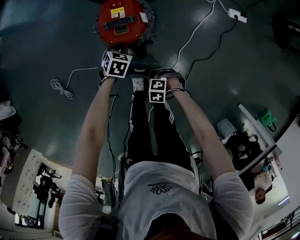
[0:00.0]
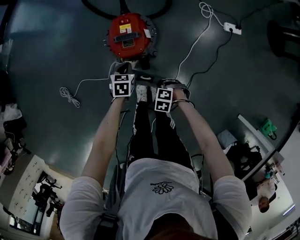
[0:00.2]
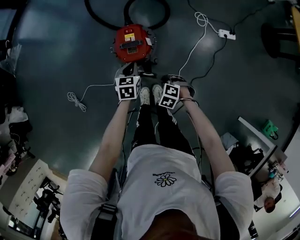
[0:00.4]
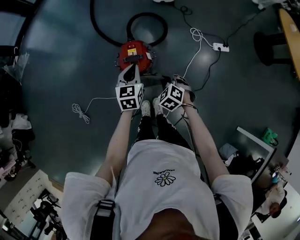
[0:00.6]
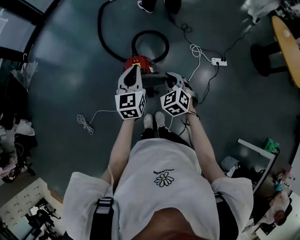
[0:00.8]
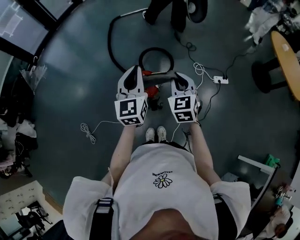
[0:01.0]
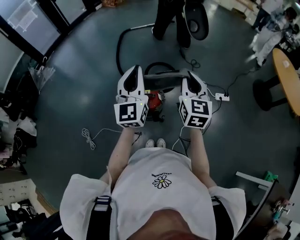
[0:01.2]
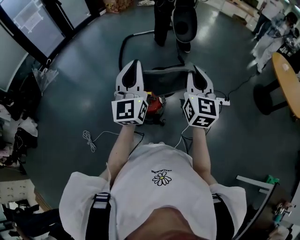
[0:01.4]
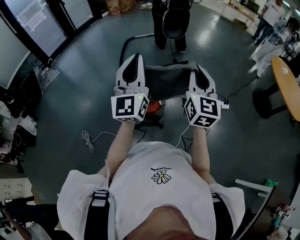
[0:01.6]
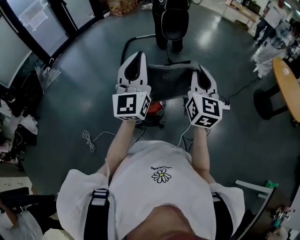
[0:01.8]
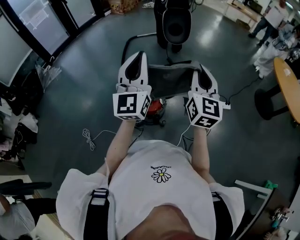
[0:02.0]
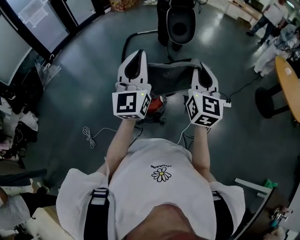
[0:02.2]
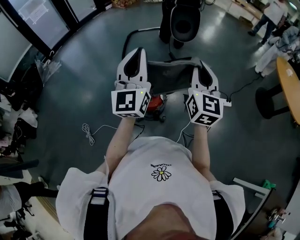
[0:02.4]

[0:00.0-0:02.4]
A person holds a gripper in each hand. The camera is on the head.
0:00.0 to 0:01.2: Both grippers travel together upward, about 70 cm. The right gripper angles its fingers upward, by some 70 degrees; the left gripper tips its fingers upward by some 80 degrees.
0:01.2 to 0:02.4: The two grippers go roughly 10 cm upward.

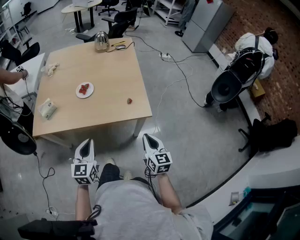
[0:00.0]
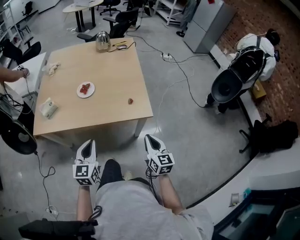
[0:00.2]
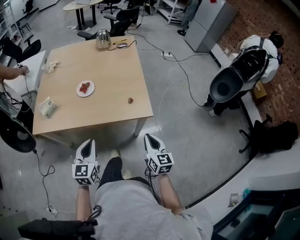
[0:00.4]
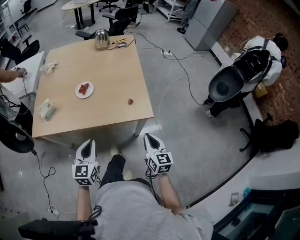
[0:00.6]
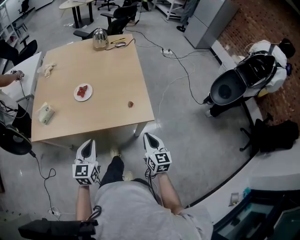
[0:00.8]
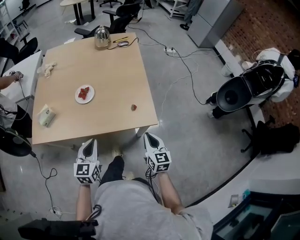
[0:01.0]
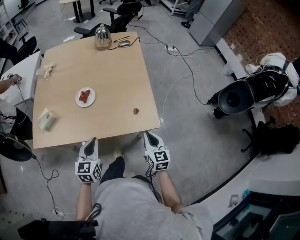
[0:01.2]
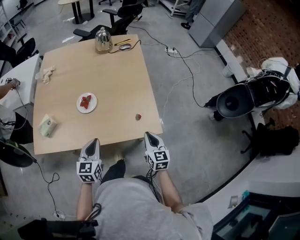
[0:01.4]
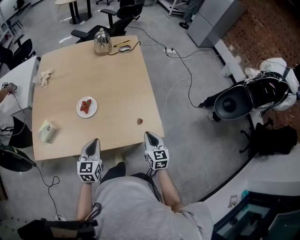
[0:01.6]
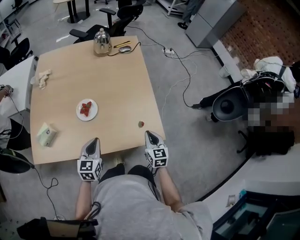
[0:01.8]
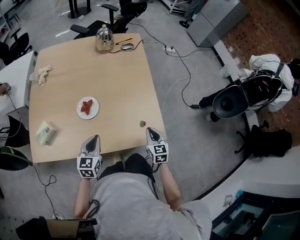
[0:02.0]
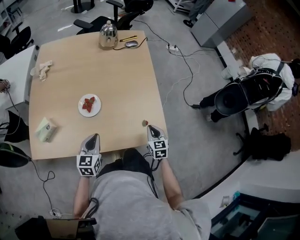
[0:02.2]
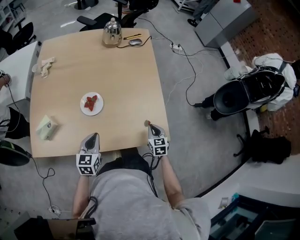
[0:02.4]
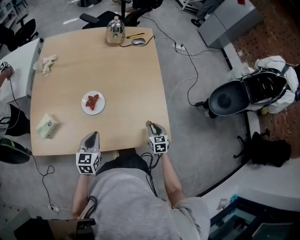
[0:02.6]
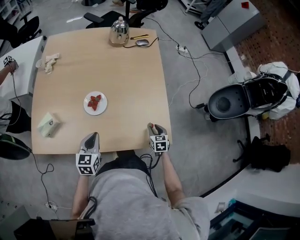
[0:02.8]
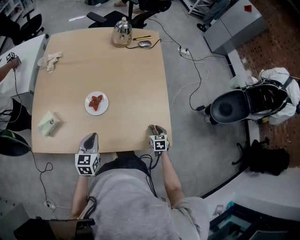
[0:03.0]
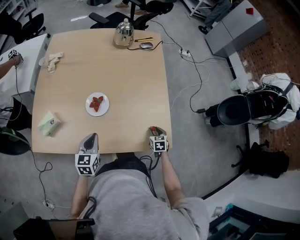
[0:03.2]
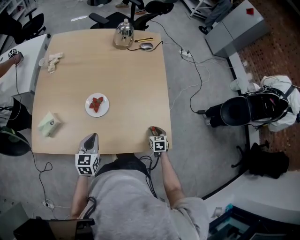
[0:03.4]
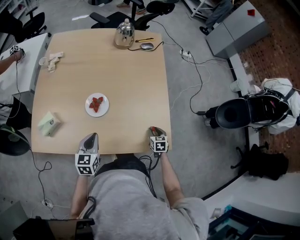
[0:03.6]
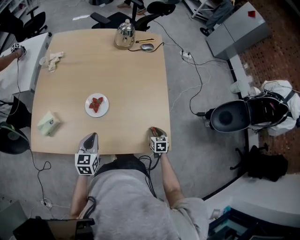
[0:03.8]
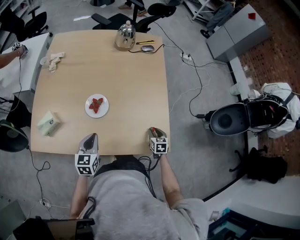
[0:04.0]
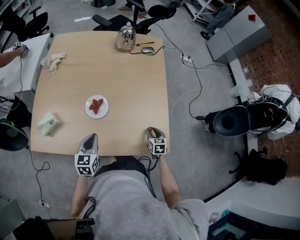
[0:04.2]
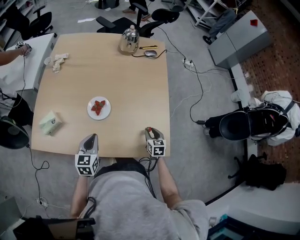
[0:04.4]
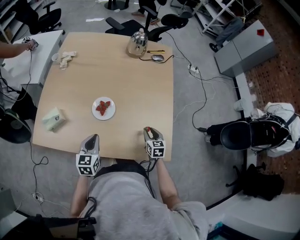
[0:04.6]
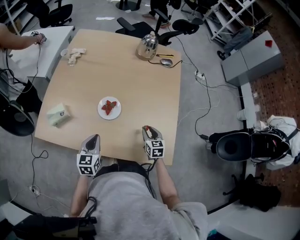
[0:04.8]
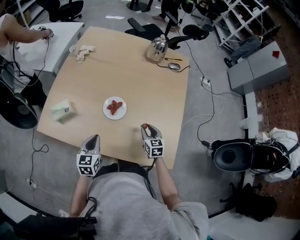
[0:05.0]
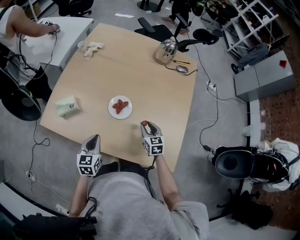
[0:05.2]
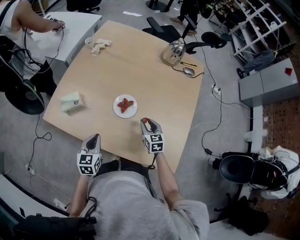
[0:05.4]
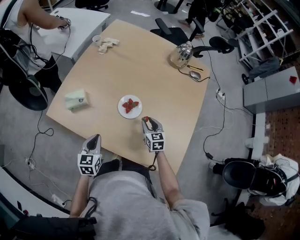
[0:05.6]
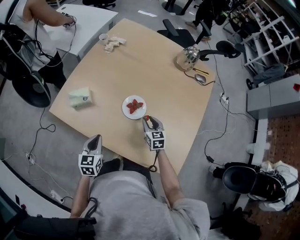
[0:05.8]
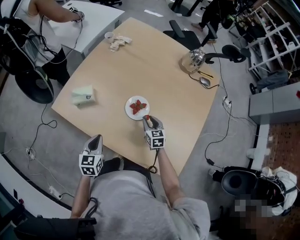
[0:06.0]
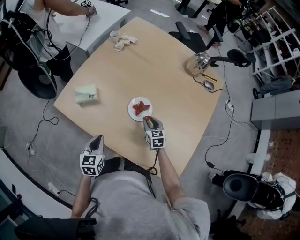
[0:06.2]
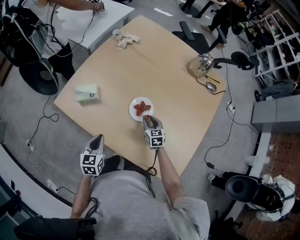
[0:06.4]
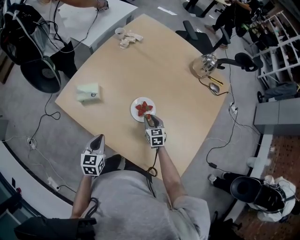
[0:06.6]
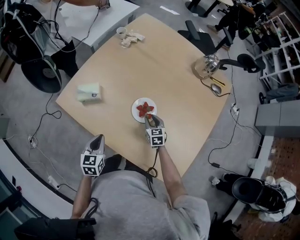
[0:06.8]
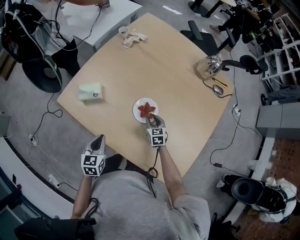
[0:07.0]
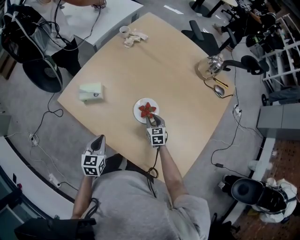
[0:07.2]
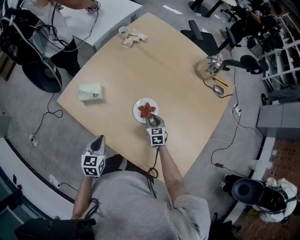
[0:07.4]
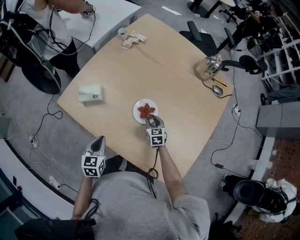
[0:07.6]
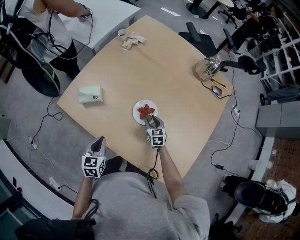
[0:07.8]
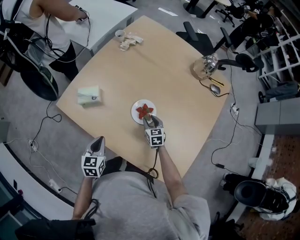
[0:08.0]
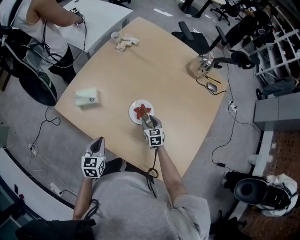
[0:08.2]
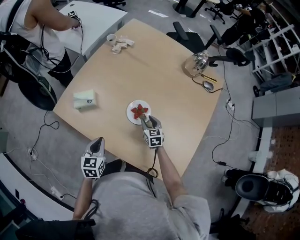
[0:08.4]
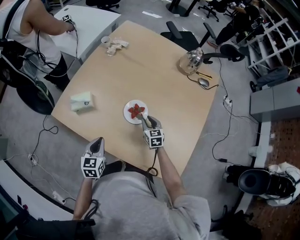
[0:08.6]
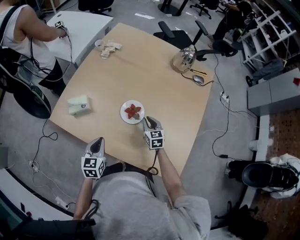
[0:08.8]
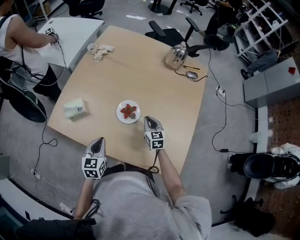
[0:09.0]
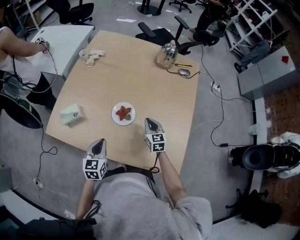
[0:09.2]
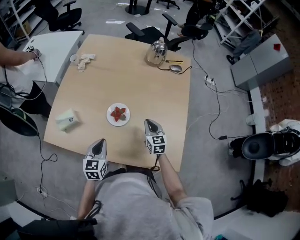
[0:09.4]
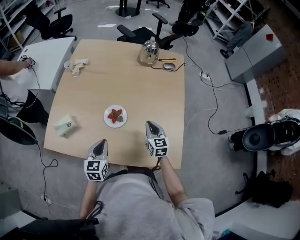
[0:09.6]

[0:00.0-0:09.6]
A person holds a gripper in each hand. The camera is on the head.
0:00.0 to 0:01.6: The two grippers go roughly 20 cm forward.
0:01.6 to 0:03.2: The right gripper shifts approximately 20 cm downward and forward, turns by some 30 degrees, and opens; the left gripper travels to the left and forward by approximately 10 cm.
0:03.2 to 0:04.8: The right gripper travels to the left, upward and forward by approximately 15 cm, and changes its angle by roughly 20 degrees.
0:04.8 to 0:06.4: The right gripper heads to the left and forward, covering roughly 20 cm, and rotates approximately 30 degrees. The left gripper goes about 10 cm to the left, and swivels roughly 20 degrees.
0:06.4 to 0:08.0: The grippers make only small movements.
0:08.0 to 0:09.6: The right gripper moves roughly 20 cm, changes its angle by approximately 30 degrees, and closes, while the left gripper moves roughly 15 cm, and swivels approximately 30 degrees.

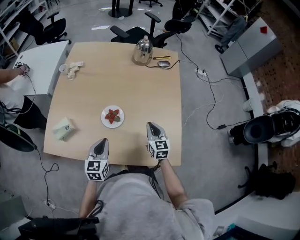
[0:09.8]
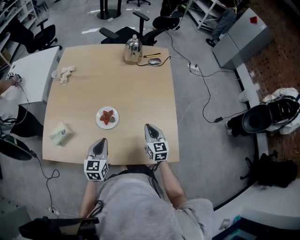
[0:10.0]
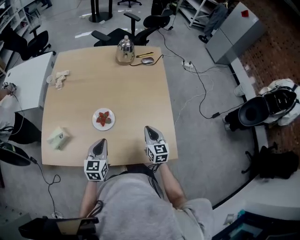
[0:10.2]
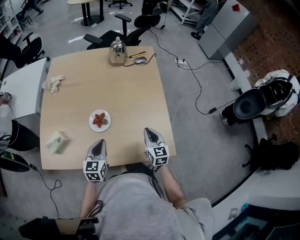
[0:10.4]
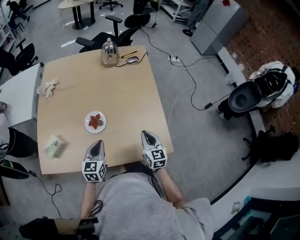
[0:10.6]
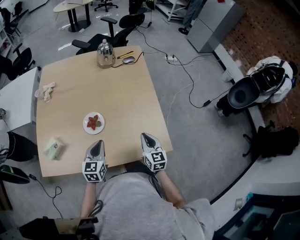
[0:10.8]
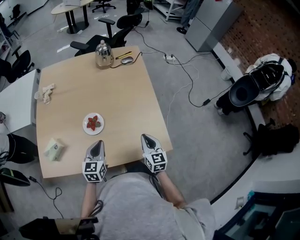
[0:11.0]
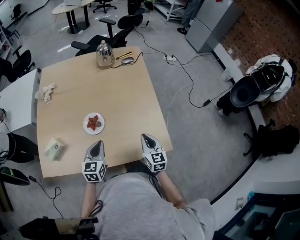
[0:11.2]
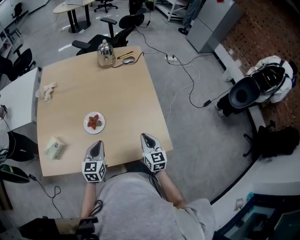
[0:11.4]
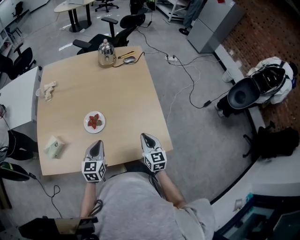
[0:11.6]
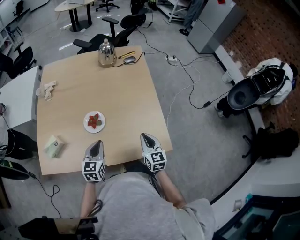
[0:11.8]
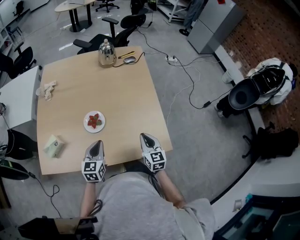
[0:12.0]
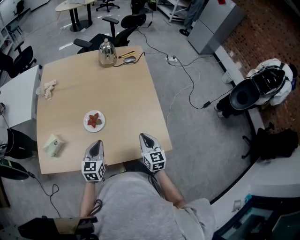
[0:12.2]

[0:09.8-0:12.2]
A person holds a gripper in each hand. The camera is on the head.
0:09.8 to 0:11.0: The left gripper travels to the right by approximately 5 cm. The right gripper moves backward and to the right, approximately 15 cm.
0:11.0 to 0:12.2: The grippers stay close to where they were, moving slightly.

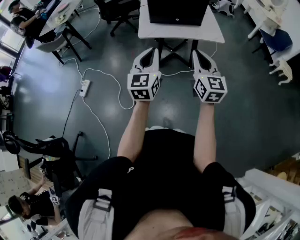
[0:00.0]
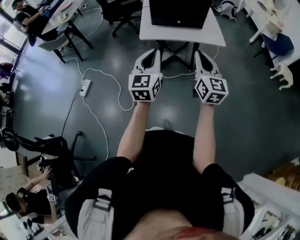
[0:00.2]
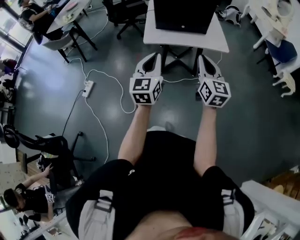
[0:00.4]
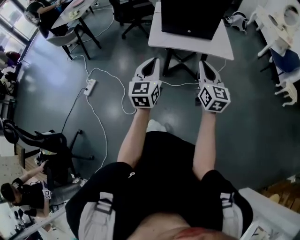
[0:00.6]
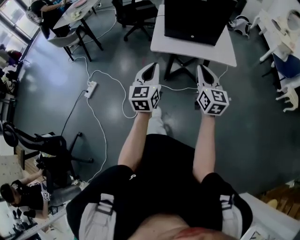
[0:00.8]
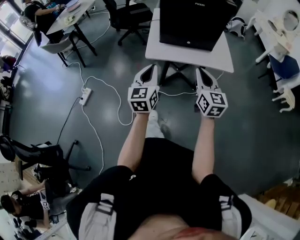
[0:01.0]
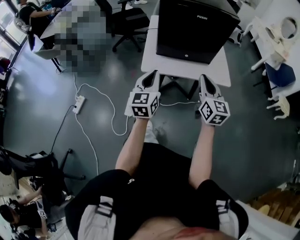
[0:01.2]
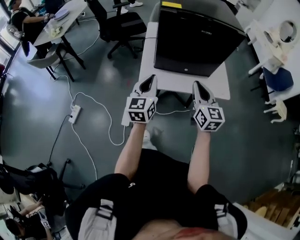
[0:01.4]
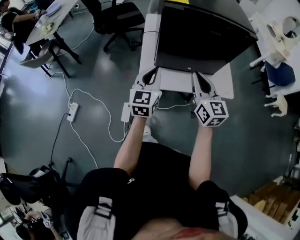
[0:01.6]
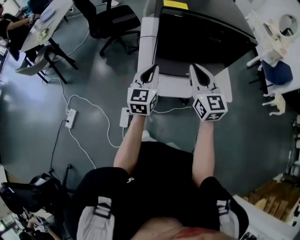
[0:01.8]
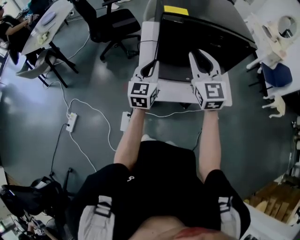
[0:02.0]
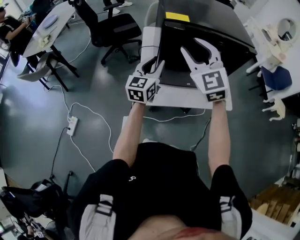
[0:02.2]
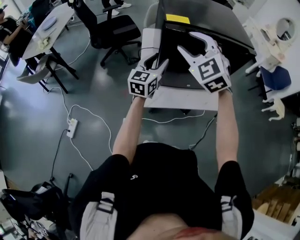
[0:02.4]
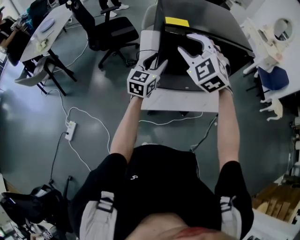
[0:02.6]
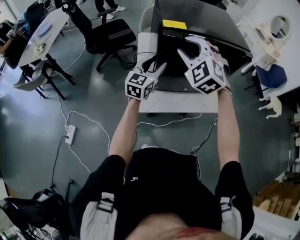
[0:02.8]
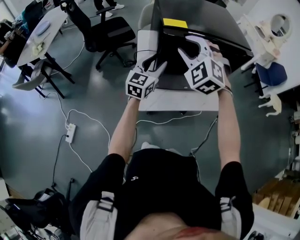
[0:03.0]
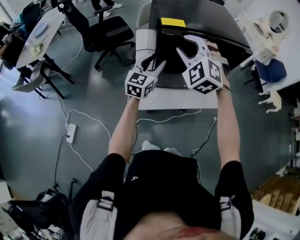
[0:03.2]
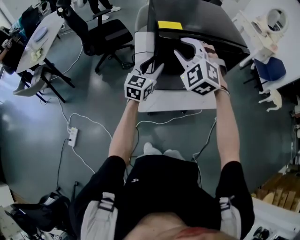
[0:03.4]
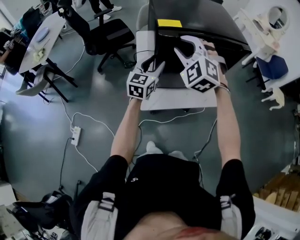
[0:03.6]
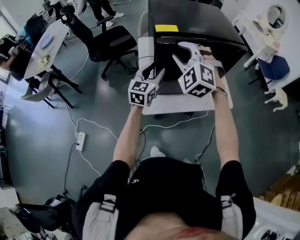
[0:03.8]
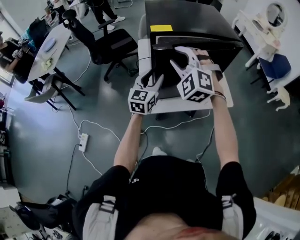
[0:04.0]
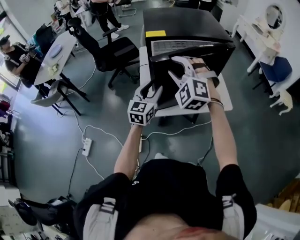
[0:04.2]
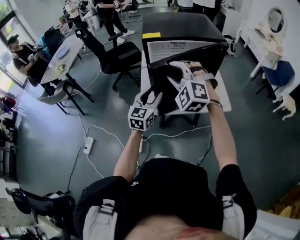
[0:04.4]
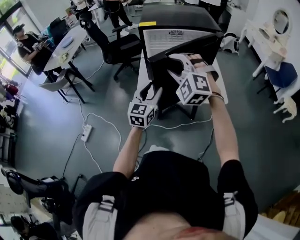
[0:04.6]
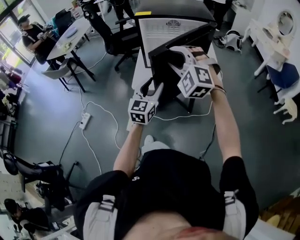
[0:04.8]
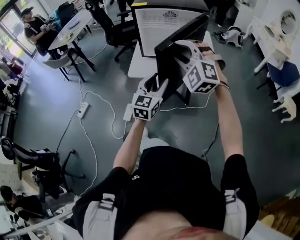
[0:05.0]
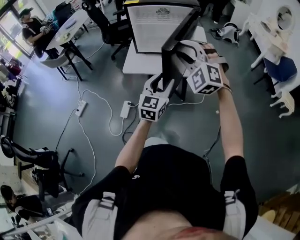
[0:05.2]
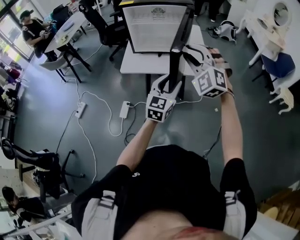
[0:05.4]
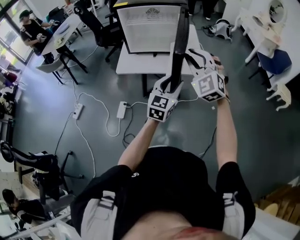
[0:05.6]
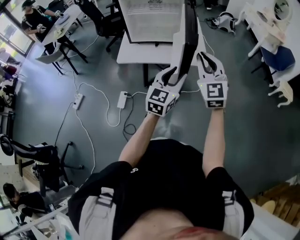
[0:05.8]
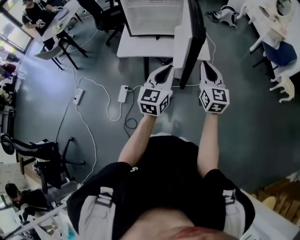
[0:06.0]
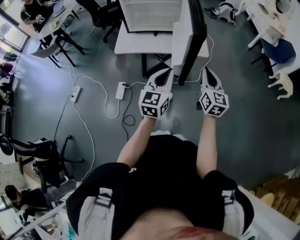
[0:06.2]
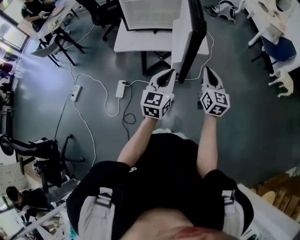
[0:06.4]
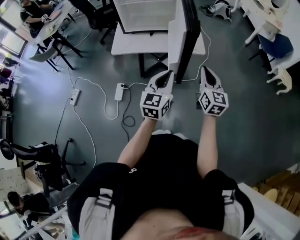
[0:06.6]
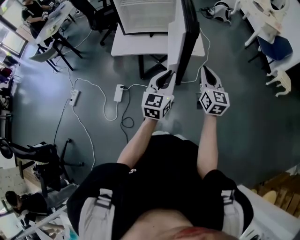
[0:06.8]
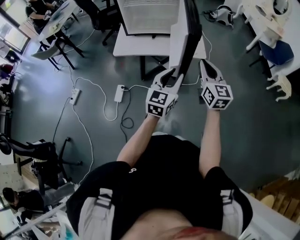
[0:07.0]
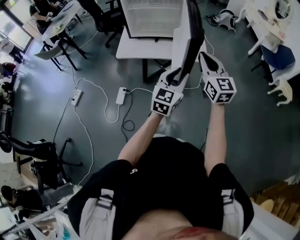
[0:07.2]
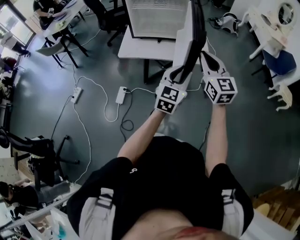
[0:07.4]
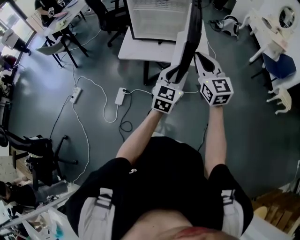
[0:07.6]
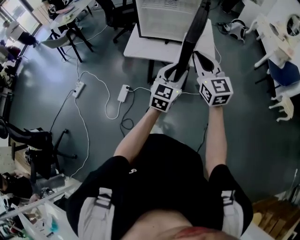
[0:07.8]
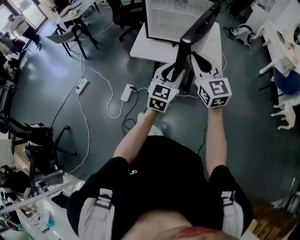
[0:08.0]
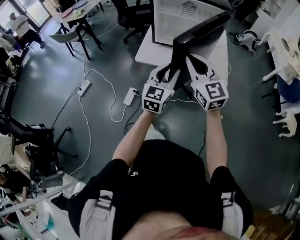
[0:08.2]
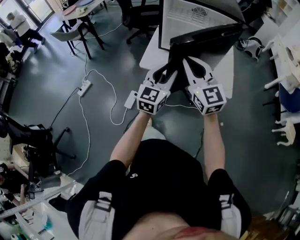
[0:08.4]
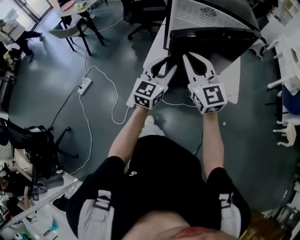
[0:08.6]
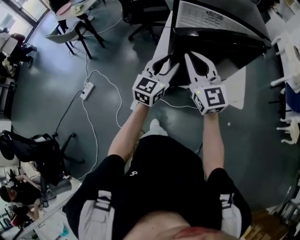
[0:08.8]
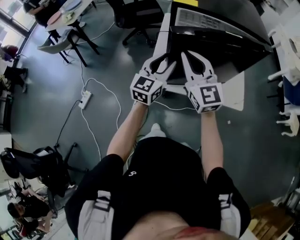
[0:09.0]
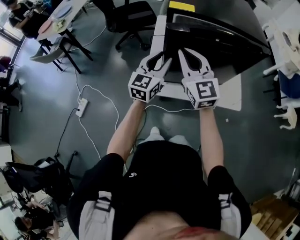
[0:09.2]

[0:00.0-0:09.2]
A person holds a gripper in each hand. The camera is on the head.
0:00.0 to 0:01.6: The two grippers go about 35 cm forward.
0:01.6 to 0:03.0: The left gripper shifts approximately 15 cm forward, and opens its fingers; the right gripper heads forward, upward and to the left, covering roughly 20 cm, rolls counterclockwise, seen from behind, by about 70 degrees, and opens.
0:03.0 to 0:04.6: Both grippers travel together backward and to the right, some 25 cm.
0:04.6 to 0:06.2: The right gripper is displaced to the right, backward and downward by roughly 40 cm, rolls clockwise, seen from behind, by some 80 degrees, and closes its fingers. Meanwhile the left gripper goes approximately 30 cm to the right and backward, and closes up.
0:06.2 to 0:07.6: The right gripper shifts approximately 15 cm upward and to the left, and rotates about 30 degrees; the left gripper shifts by approximately 5 cm, and opens.
0:07.6 to 0:09.2: The two grippers travel together, forward and to the left, roughly 50 cm.
